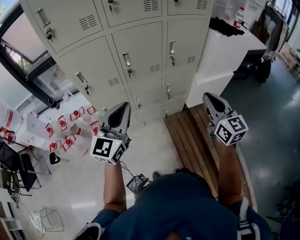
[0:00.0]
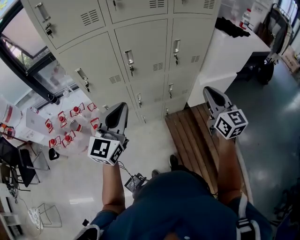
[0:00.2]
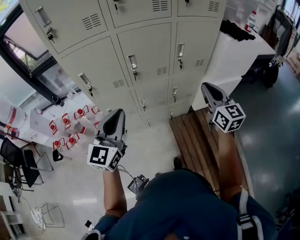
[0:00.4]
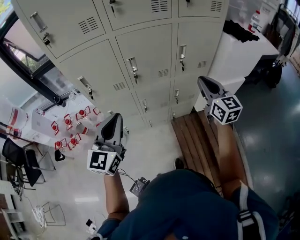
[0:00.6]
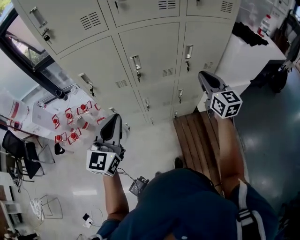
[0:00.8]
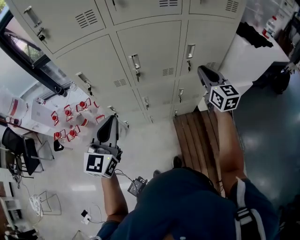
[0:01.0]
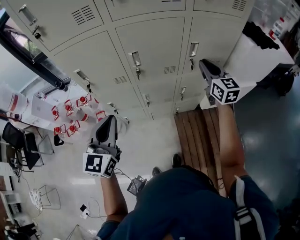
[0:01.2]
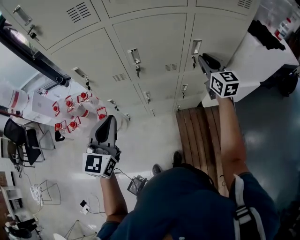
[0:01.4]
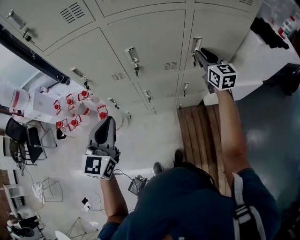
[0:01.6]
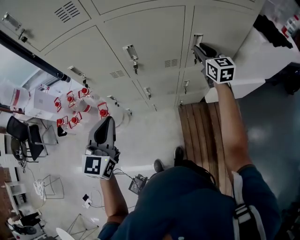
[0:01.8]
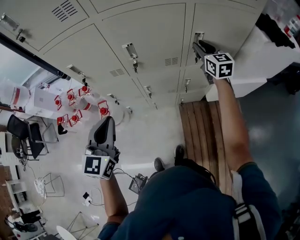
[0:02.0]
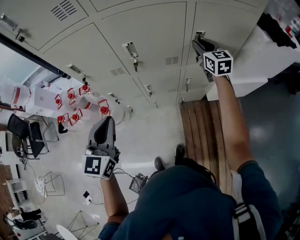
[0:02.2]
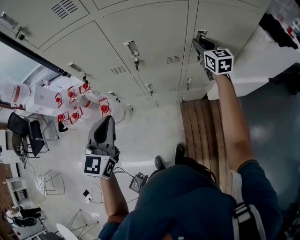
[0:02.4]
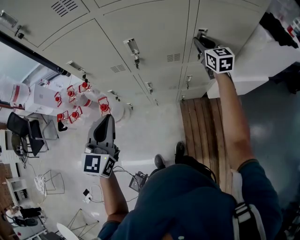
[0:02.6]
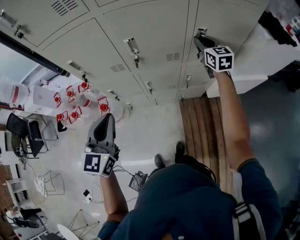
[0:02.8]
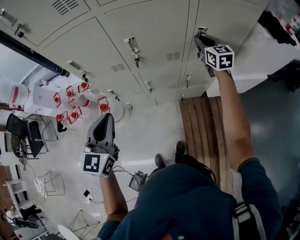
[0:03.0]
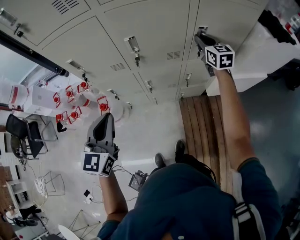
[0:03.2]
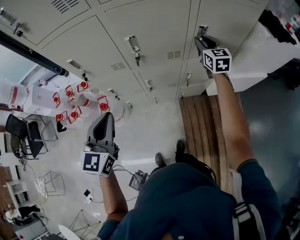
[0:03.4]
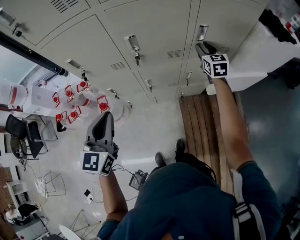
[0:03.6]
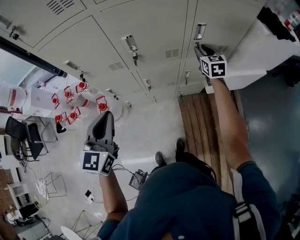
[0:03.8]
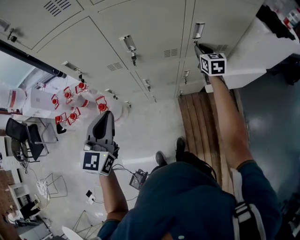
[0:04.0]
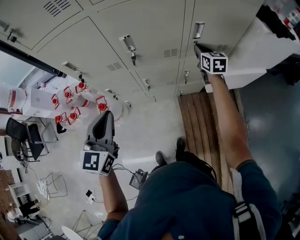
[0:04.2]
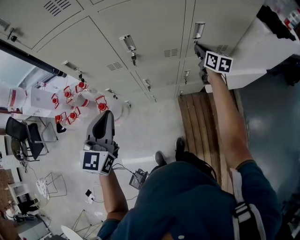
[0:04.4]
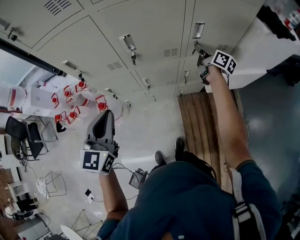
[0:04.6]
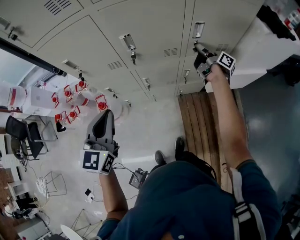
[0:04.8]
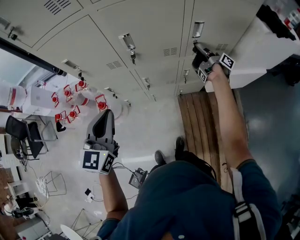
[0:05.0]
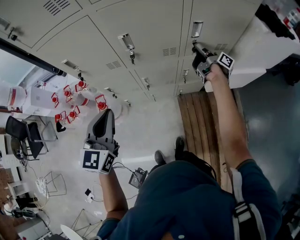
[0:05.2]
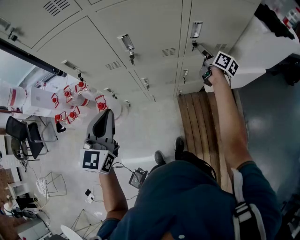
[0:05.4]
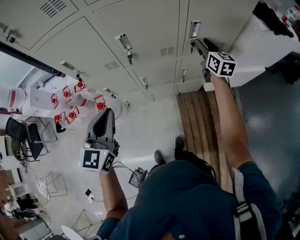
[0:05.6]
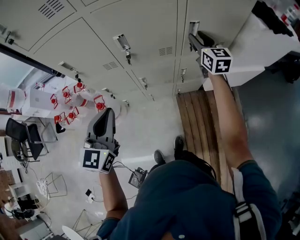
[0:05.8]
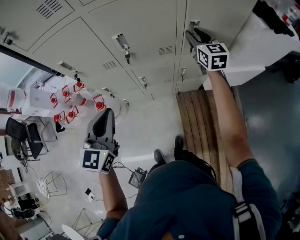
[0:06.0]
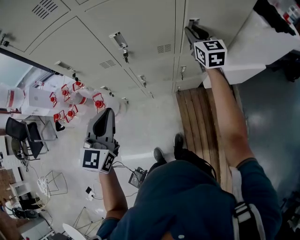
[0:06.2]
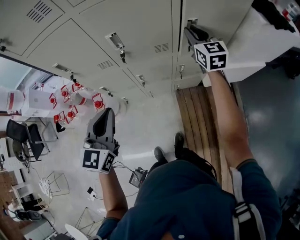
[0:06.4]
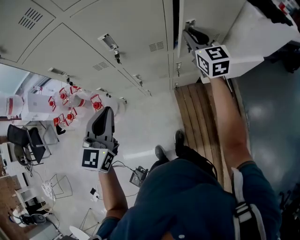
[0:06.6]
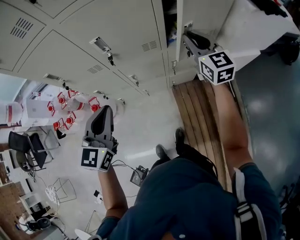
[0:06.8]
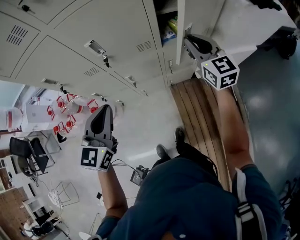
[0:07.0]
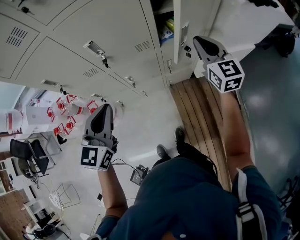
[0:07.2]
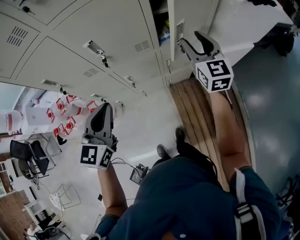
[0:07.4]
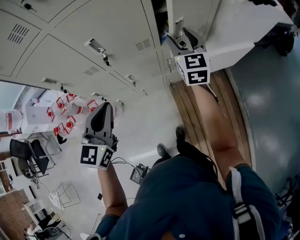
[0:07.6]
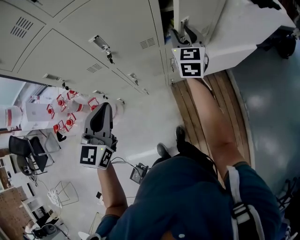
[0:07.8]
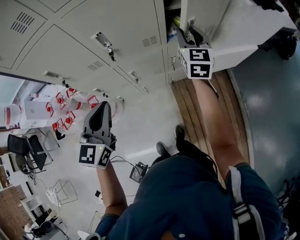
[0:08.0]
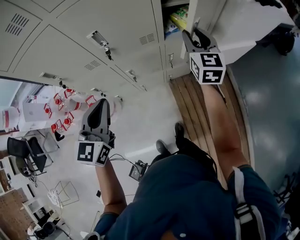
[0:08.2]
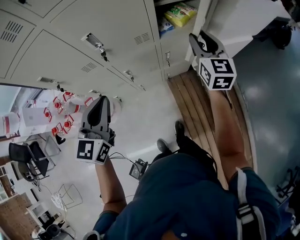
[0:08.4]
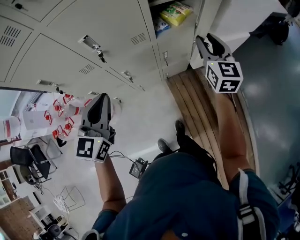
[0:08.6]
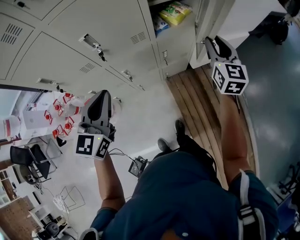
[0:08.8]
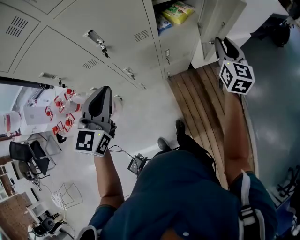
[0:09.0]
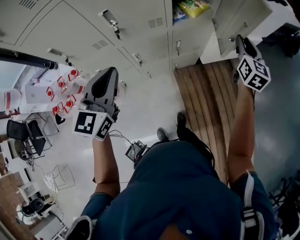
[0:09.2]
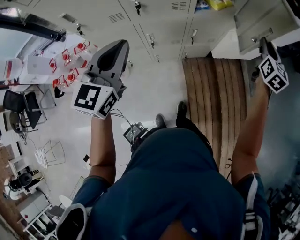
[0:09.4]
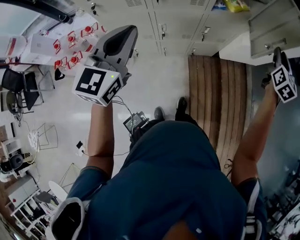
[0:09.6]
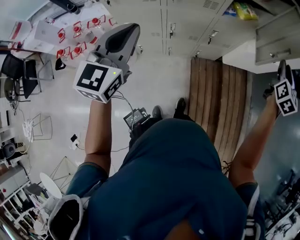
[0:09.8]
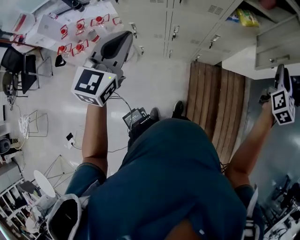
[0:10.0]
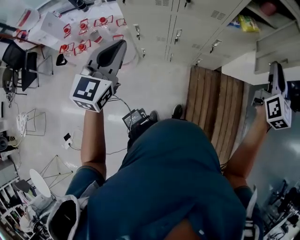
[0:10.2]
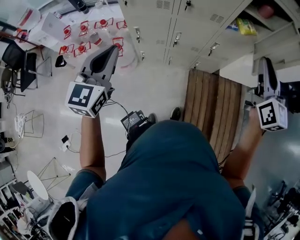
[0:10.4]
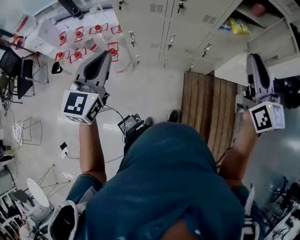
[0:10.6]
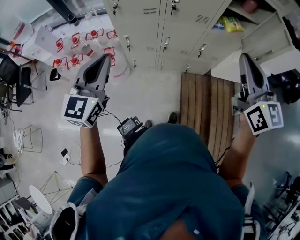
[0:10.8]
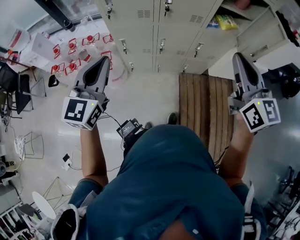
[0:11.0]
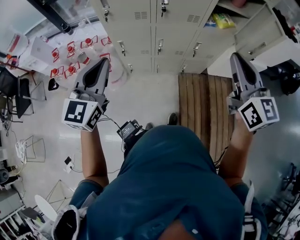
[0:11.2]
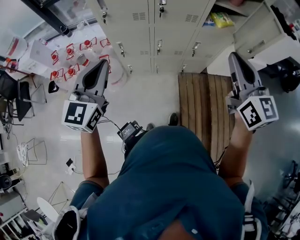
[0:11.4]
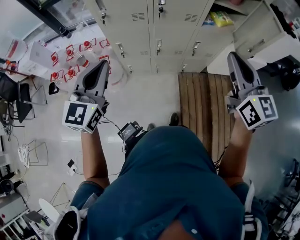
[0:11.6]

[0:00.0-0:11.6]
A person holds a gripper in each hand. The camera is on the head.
0:00.0 to 0:01.4: The right gripper goes some 35 cm forward. Meanwhile the left gripper travels forward and downward by about 10 cm, and changes its angle by roughly 20 degrees.
0:01.4 to 0:02.8: The right gripper moves forward and downward, about 10 cm.
0:02.8 to 0:04.4: The right gripper is displaced downward by approximately 10 cm, and changes its angle by about 30 degrees.
0:04.4 to 0:05.8: The right gripper travels upward by some 10 cm, turns by some 20 degrees, and opens its fingers.
0:05.8 to 0:07.2: The left gripper shifts roughly 5 cm to the right. The right gripper heads backward and to the right, covering about 15 cm, and closes up.
0:07.2 to 0:08.8: The right gripper moves to the right, approximately 5 cm, changes its angle by approximately 20 degrees, and opens.
0:08.8 to 0:10.2: The left gripper heads backward and to the left, covering approximately 25 cm. Meanwhile the right gripper goes some 20 cm backward and upward.
0:10.2 to 0:11.6: The right gripper travels to the left and backward by roughly 15 cm, and changes its angle by roughly 20 degrees.

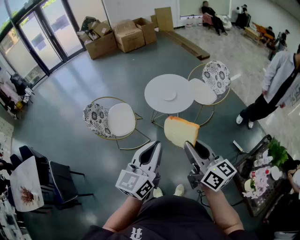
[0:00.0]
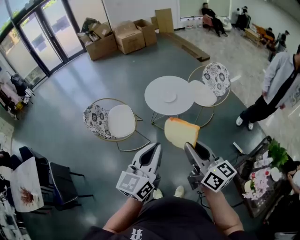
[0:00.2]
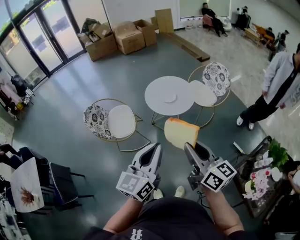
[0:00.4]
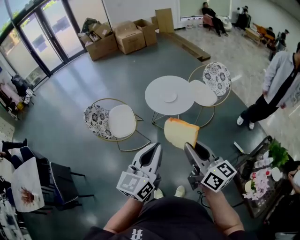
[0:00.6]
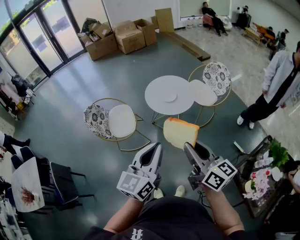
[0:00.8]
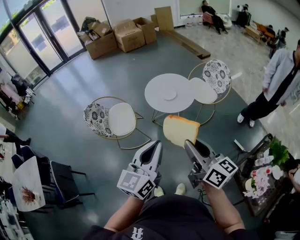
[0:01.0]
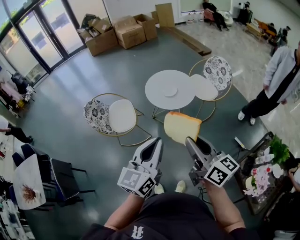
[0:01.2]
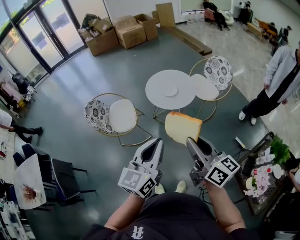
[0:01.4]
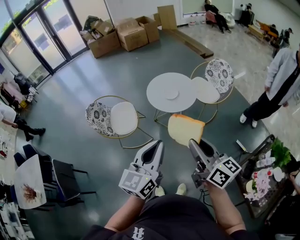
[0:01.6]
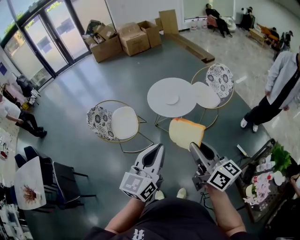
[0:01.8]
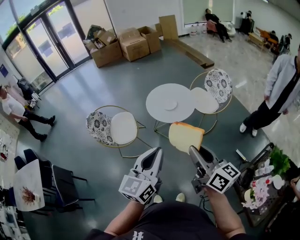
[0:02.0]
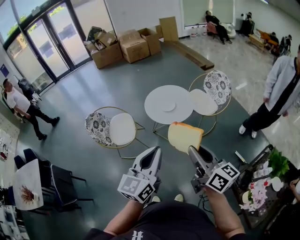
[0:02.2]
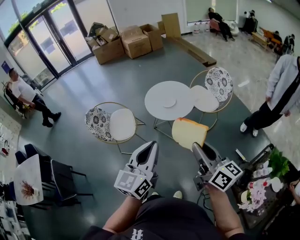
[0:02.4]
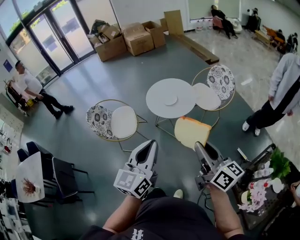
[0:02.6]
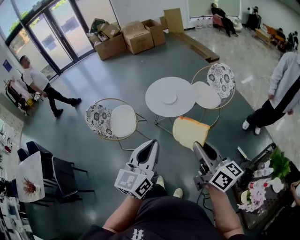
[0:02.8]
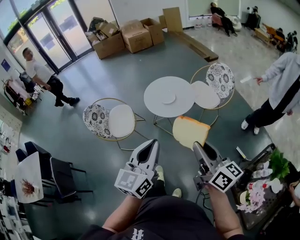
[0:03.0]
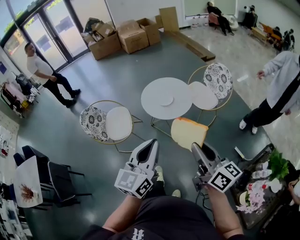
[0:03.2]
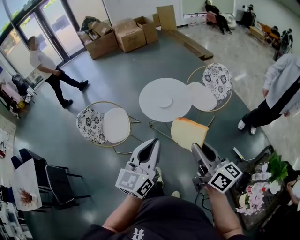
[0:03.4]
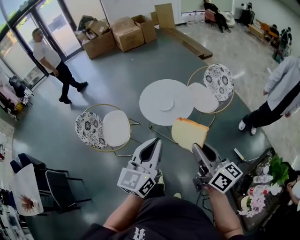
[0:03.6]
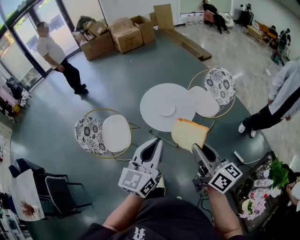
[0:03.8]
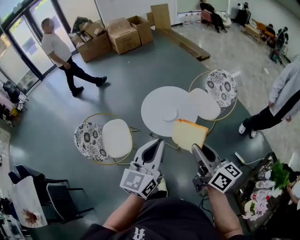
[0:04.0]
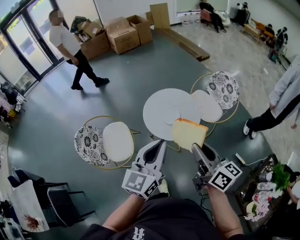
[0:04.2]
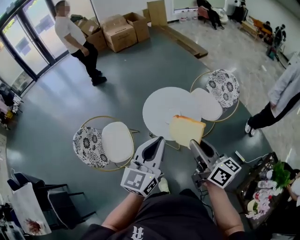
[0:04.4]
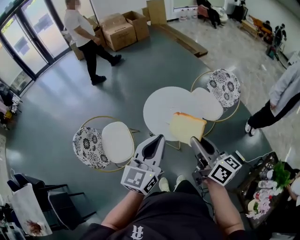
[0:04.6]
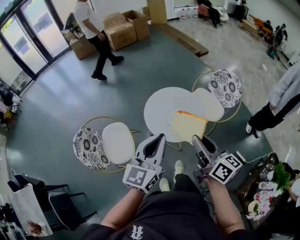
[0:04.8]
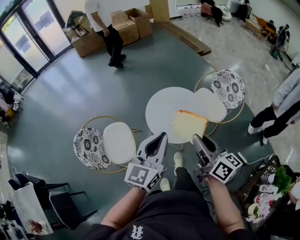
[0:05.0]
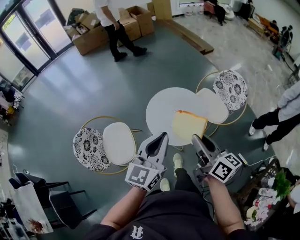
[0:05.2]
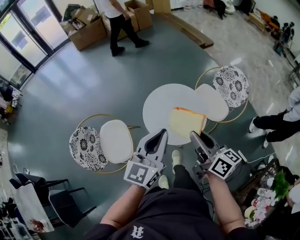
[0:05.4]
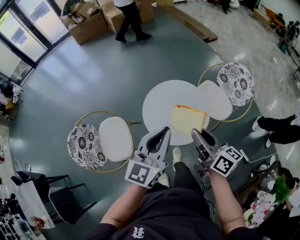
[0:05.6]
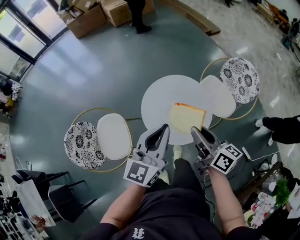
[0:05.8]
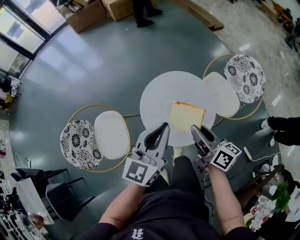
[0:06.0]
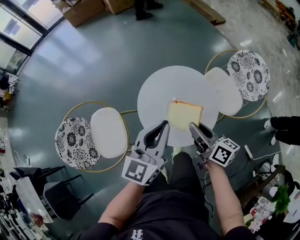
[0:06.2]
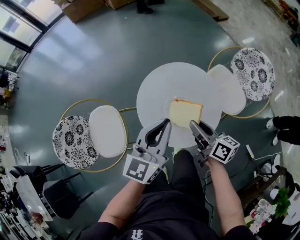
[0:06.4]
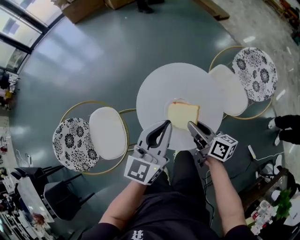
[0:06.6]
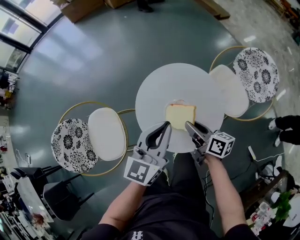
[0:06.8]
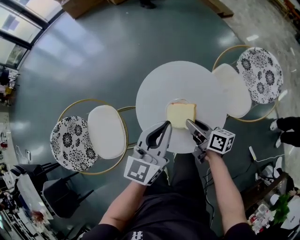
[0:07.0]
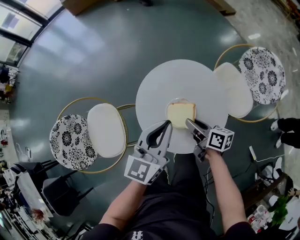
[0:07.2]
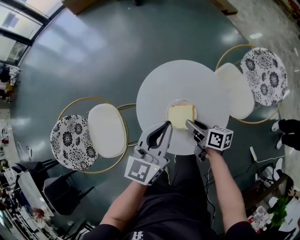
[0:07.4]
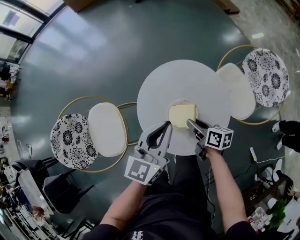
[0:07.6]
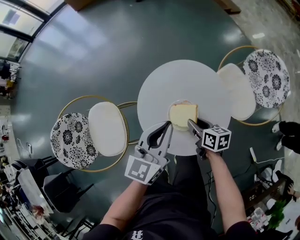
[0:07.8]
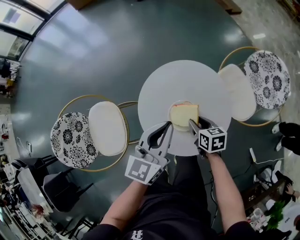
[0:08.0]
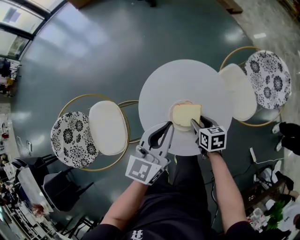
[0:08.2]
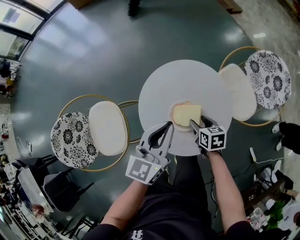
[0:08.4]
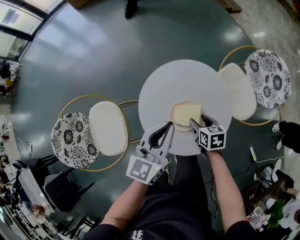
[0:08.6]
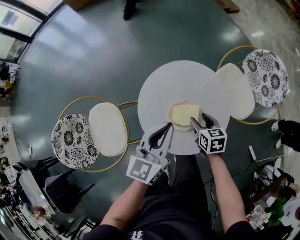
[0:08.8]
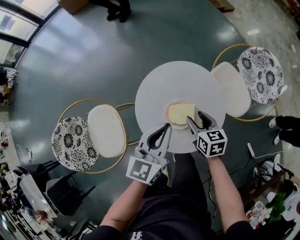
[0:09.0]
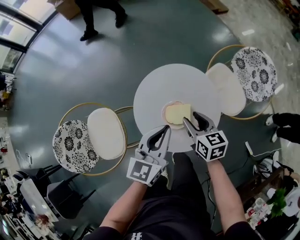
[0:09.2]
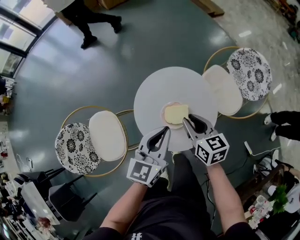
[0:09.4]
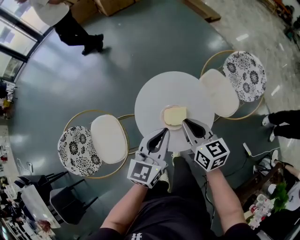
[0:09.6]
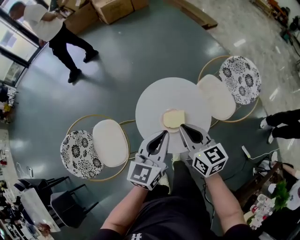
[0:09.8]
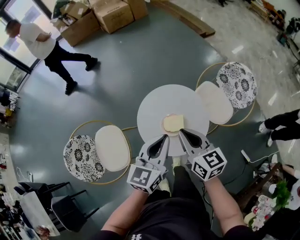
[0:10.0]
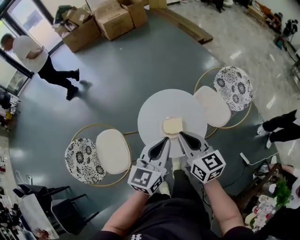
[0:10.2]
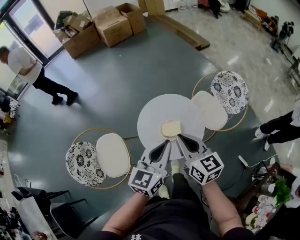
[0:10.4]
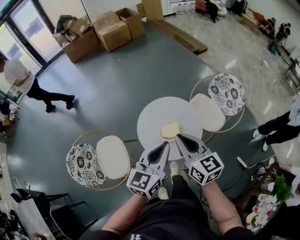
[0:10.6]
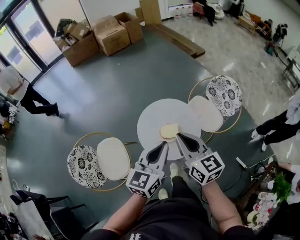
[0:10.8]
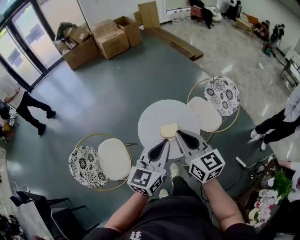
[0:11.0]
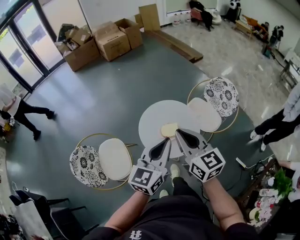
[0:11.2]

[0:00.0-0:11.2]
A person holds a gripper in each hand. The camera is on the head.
0:00.0 to 0:01.6: The grippers make only small movements.
0:01.6 to 0:03.2: The right gripper heads to the right, covering about 10 cm; the left gripper moves to the right and forward, some 10 cm.
0:03.2 to 0:04.8: The left gripper shifts about 30 cm forward. Meanwhile the right gripper is displaced forward and to the left by about 30 cm.
0:04.8 to 0:06.4: The right gripper moves downward and forward, some 35 cm, and rotates approximately 20 degrees; the left gripper shifts some 30 cm forward and downward.
0:06.4 to 0:08.0: The left gripper shifts roughly 10 cm downward and forward. Meanwhile the right gripper travels downward by roughly 15 cm, and tips its fingers downward by approximately 40 degrees.
0:08.0 to 0:09.6: The left gripper shifts some 10 cm upward. The right gripper shifts roughly 25 cm upward, rotates approximately 30 degrees, and closes its fingers.
0:09.6 to 0:11.2: Both grippers move upward and backward, roughly 25 cm. The right gripper rotates approximately 20 degrees.

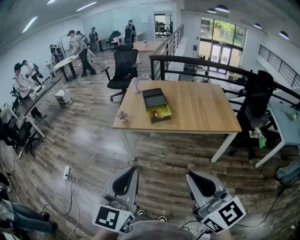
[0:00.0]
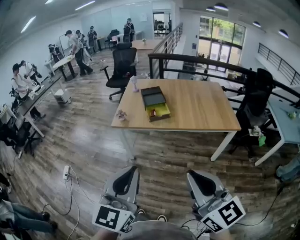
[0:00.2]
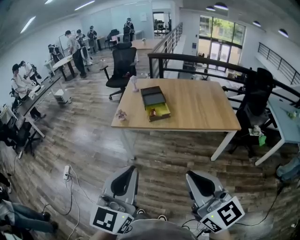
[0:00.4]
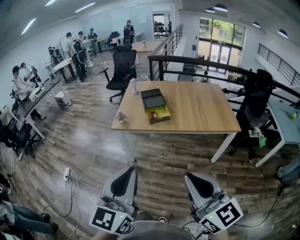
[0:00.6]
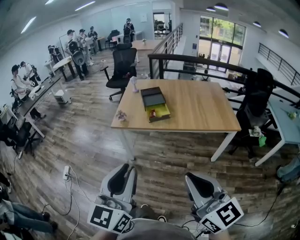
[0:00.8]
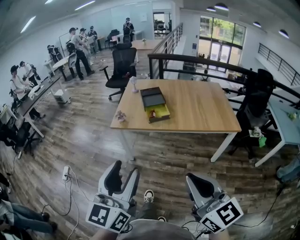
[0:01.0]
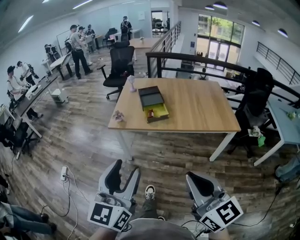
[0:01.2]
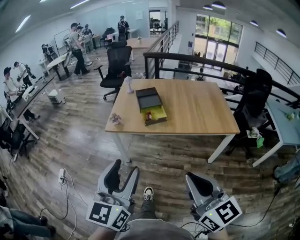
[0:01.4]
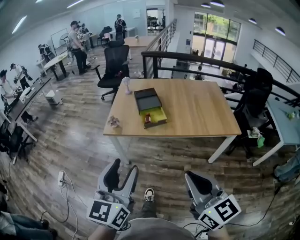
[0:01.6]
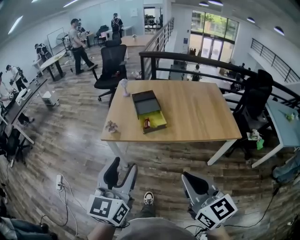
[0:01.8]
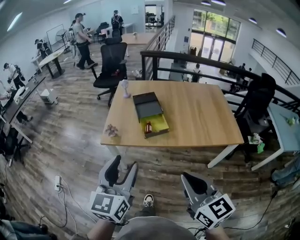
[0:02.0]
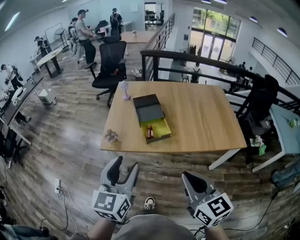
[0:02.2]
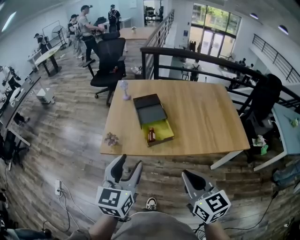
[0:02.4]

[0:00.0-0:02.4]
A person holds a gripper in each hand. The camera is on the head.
0:00.0 to 0:01.2: The left gripper opens its fingers.
0:01.2 to 0:02.4: Both grippers travel together forward, about 35 cm.
